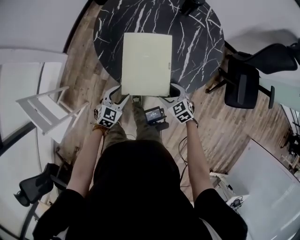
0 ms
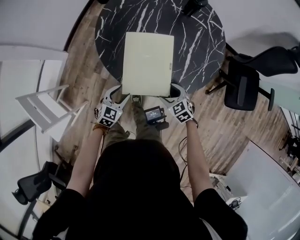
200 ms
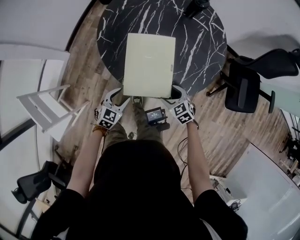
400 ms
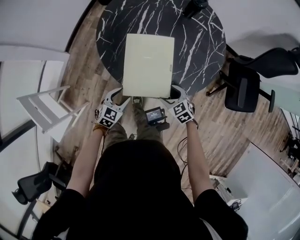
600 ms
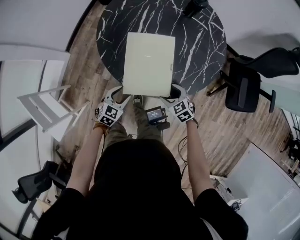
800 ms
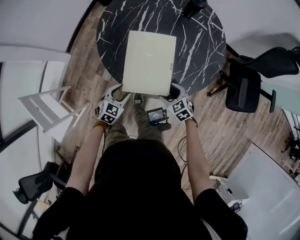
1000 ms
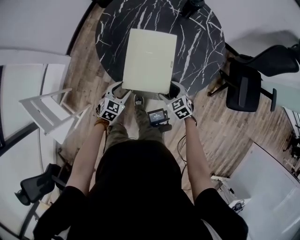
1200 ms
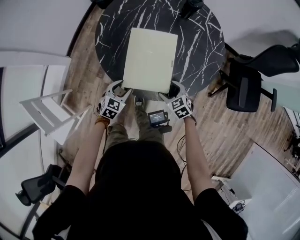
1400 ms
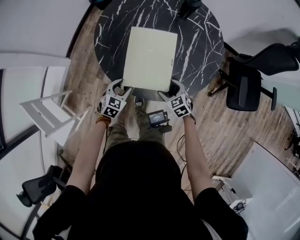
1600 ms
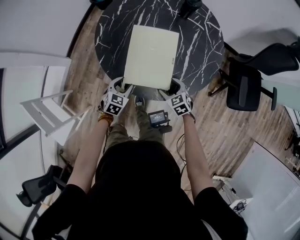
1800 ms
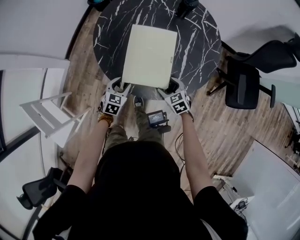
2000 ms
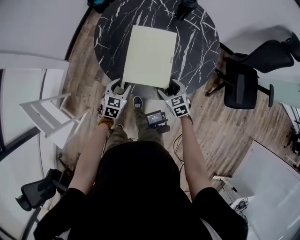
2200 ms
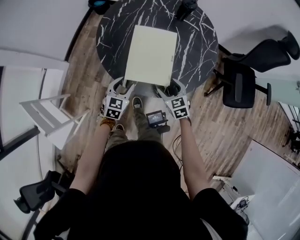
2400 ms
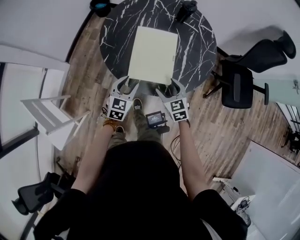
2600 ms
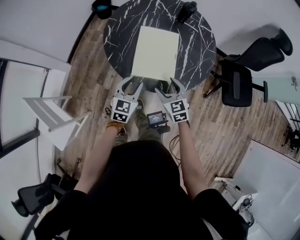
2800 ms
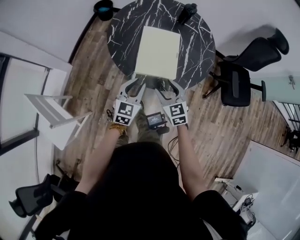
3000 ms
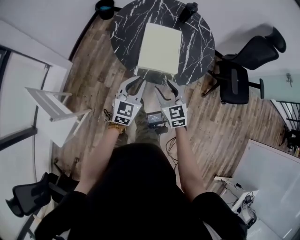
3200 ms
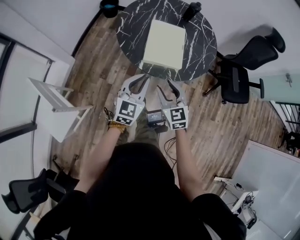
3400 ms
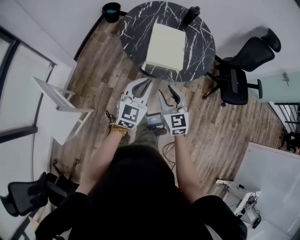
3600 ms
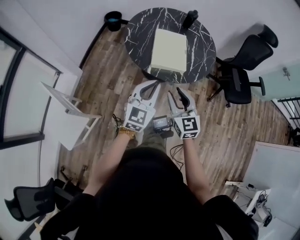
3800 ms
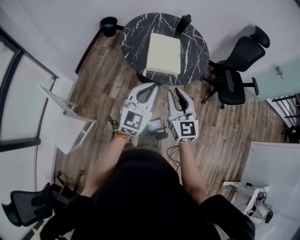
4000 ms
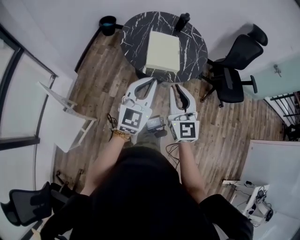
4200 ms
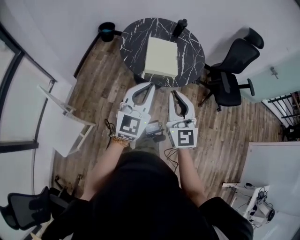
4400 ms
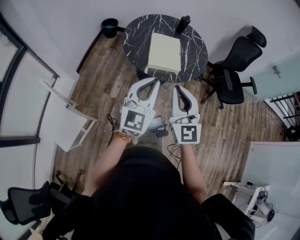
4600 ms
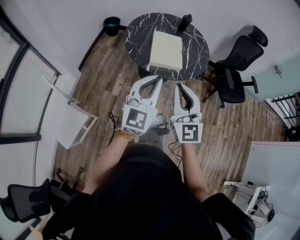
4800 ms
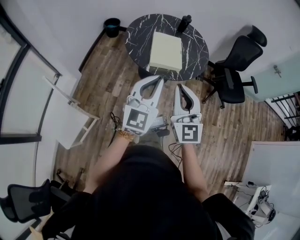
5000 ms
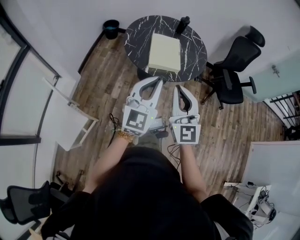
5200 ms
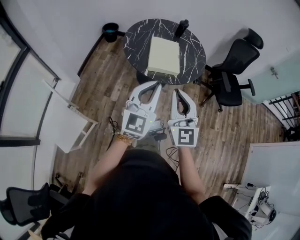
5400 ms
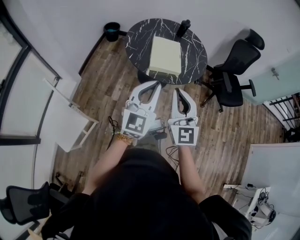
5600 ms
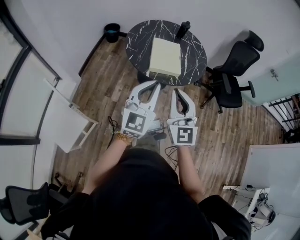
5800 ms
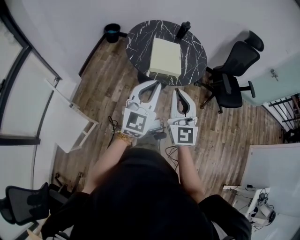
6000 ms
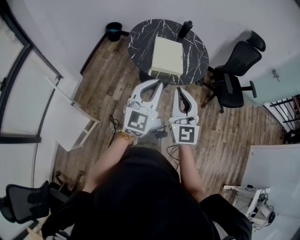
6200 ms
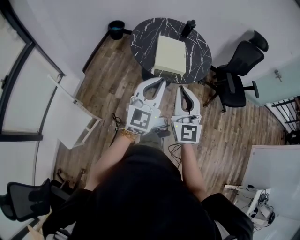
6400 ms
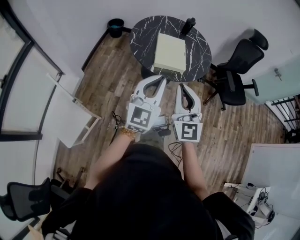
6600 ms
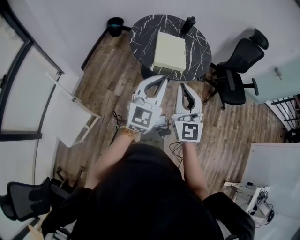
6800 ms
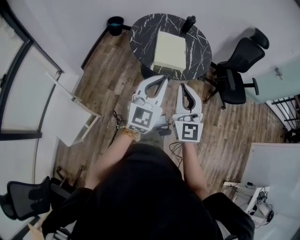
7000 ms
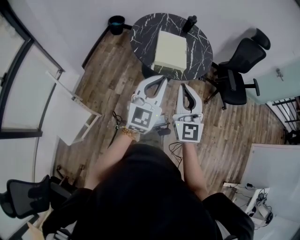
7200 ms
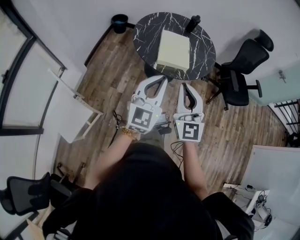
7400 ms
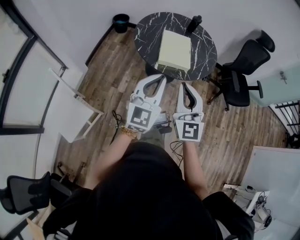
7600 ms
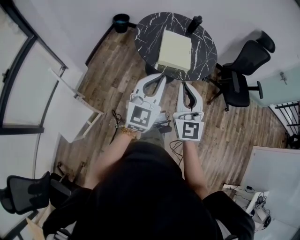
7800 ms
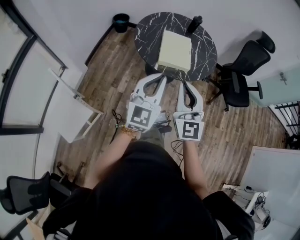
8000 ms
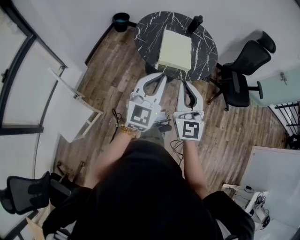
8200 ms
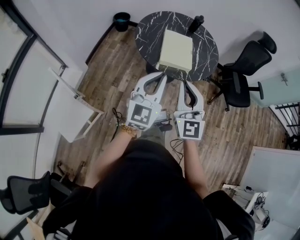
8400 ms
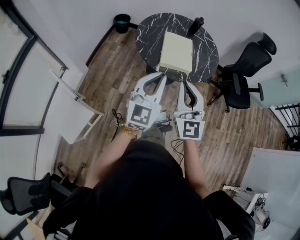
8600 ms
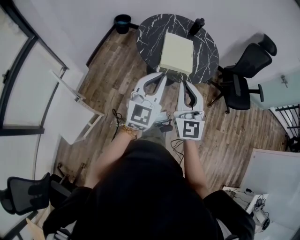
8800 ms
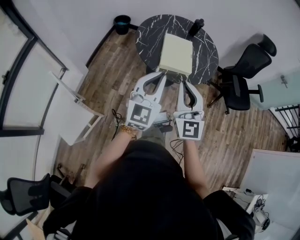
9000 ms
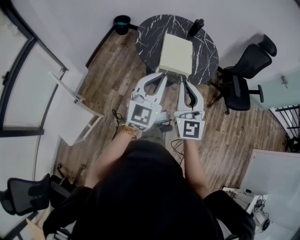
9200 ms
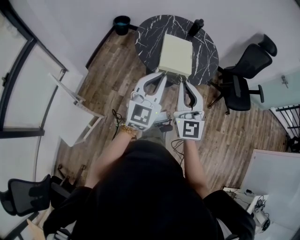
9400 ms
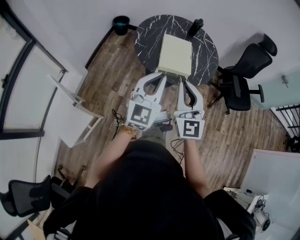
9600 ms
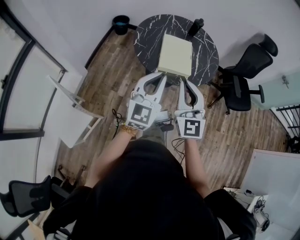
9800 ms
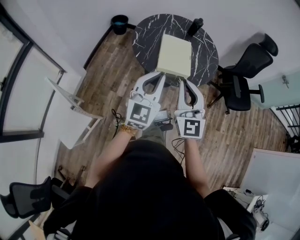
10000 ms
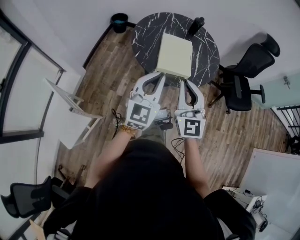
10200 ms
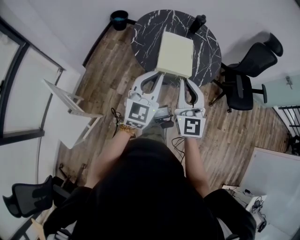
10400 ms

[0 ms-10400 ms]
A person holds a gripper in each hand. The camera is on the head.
0 ms to 1400 ms: The grippers stay close to where they were, moving slightly.
1400 ms to 3000 ms: The left gripper heads upward, covering some 20 cm, turns by roughly 30 degrees, and closes its fingers. Meanwhile the right gripper heads upward, to the left and backward, covering about 20 cm, and swivels roughly 30 degrees.
3000 ms to 4400 ms: The left gripper goes approximately 30 cm upward and backward, changes its angle by approximately 30 degrees, and closes up, while the right gripper moves backward and upward, roughly 35 cm, angles its fingers upward, by about 30 degrees, and closes its fingers.
4400 ms to 6000 ms: The grippers move only a little.
6000 ms to 7400 ms: Both grippers stay about where they are.
7400 ms to 9000 ms: There are only small adjustments of the grippers.
9000 ms to 10400 ms: The grippers both shift forward by approximately 10 cm.

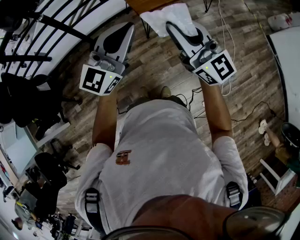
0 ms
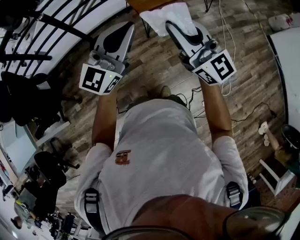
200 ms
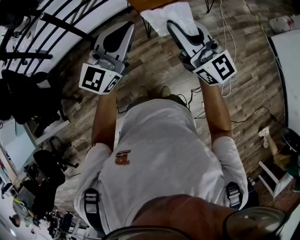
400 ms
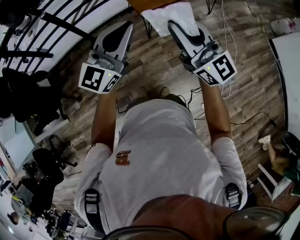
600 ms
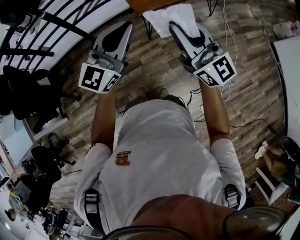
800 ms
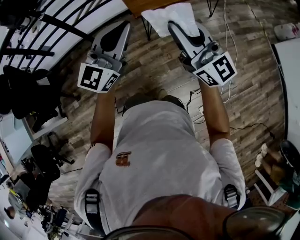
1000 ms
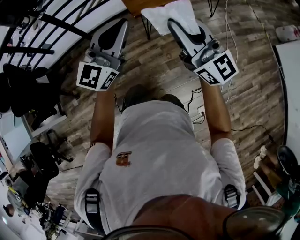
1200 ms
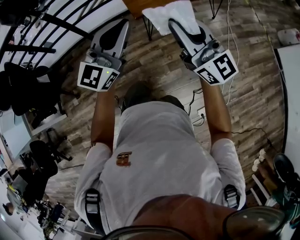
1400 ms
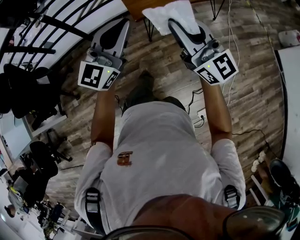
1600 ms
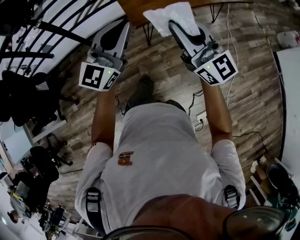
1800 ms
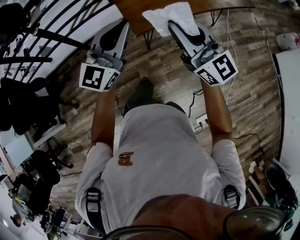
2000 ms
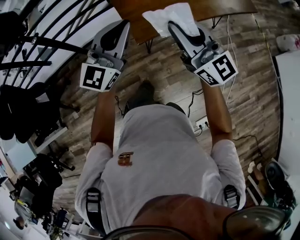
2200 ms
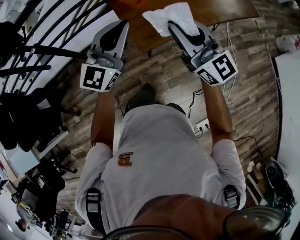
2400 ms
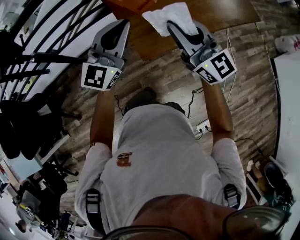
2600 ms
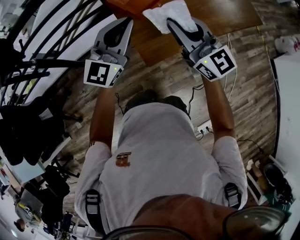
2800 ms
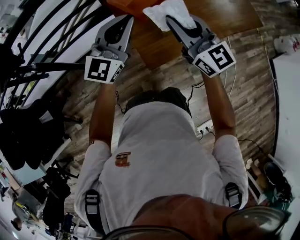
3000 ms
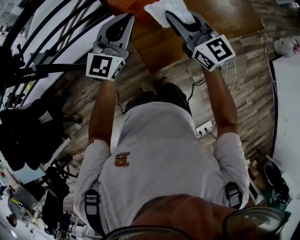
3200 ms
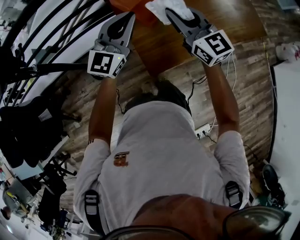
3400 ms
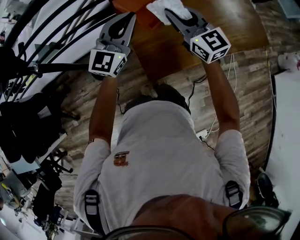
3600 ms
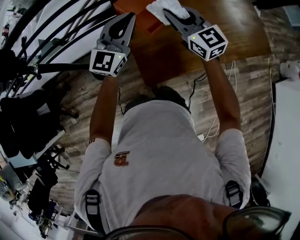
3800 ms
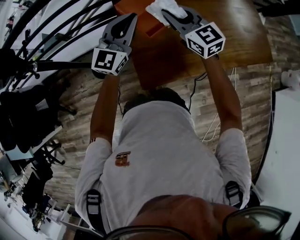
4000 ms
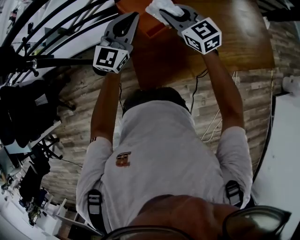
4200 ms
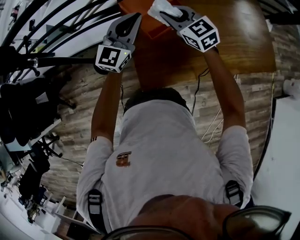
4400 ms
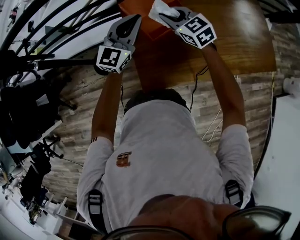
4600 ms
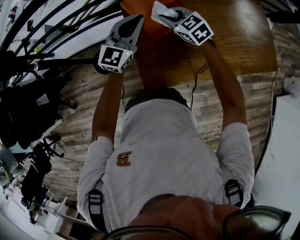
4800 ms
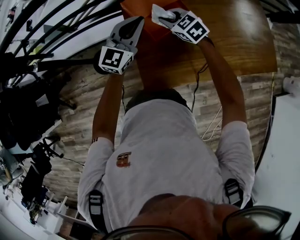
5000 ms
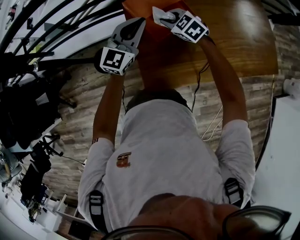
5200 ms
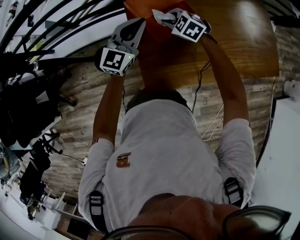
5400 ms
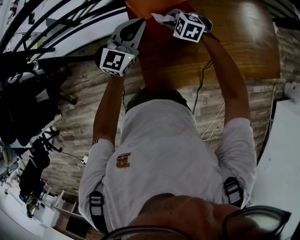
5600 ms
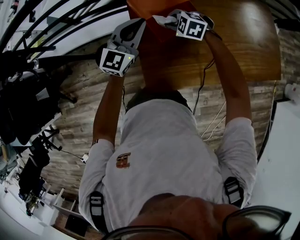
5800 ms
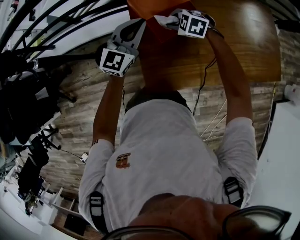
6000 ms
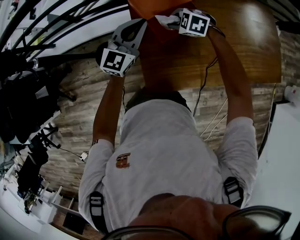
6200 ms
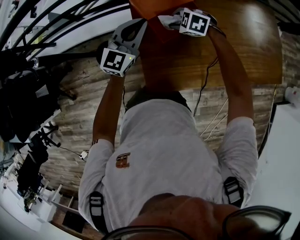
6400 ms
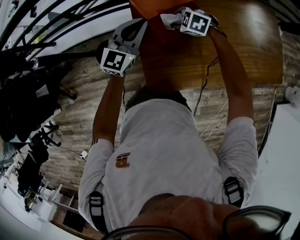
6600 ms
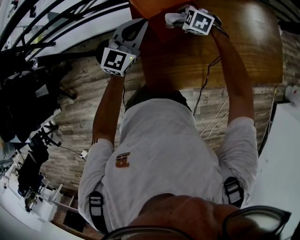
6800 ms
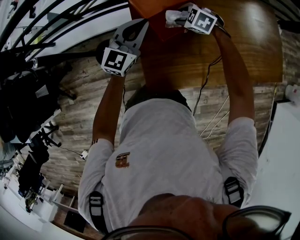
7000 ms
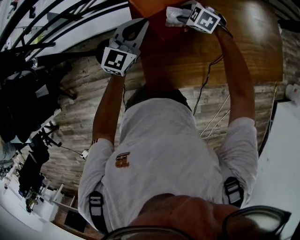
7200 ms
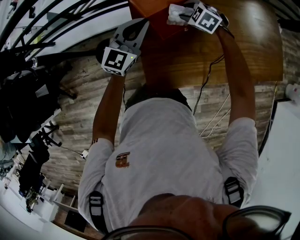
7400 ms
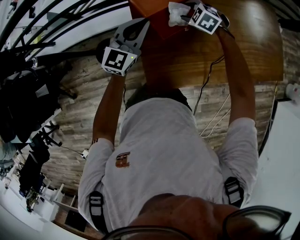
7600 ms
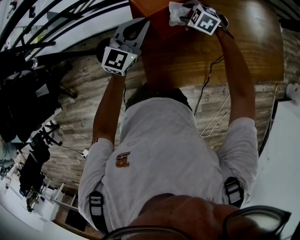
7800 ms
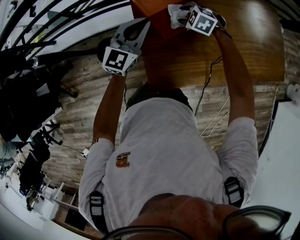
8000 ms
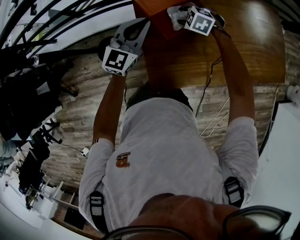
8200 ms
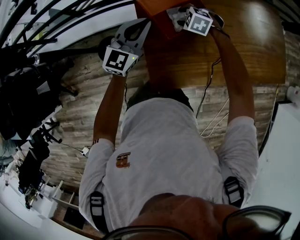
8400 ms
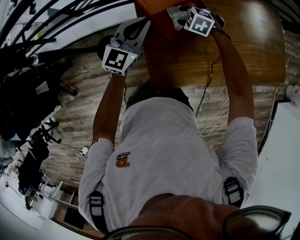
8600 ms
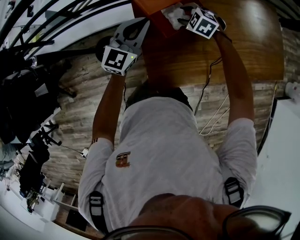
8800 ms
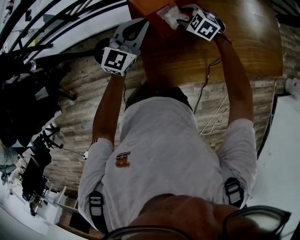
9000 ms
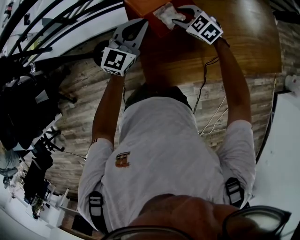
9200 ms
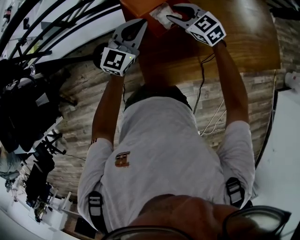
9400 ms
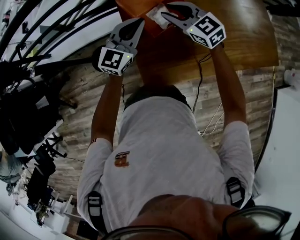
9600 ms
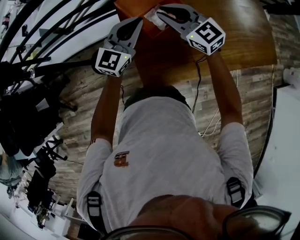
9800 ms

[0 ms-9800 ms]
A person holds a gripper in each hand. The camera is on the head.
0 ms to 1400 ms: The two grippers go roughly 10 cm to the right.
1400 ms to 2800 ms: Both grippers are carried forward, approximately 40 cm.
2800 ms to 4200 ms: Both grippers move forward, some 25 cm. The right gripper swivels about 30 degrees.
4200 ms to 5600 ms: The left gripper shifts some 10 cm downward and forward. Meanwhile the right gripper travels downward by roughly 15 cm, and tilts its fingers some 40 degrees downward.
5600 ms to 7000 ms: The right gripper shifts by some 5 cm, and opens.
7000 ms to 8400 ms: There are only small adjustments of the grippers.
8400 ms to 9800 ms: The left gripper shifts by approximately 5 cm, while the right gripper travels upward by roughly 20 cm, tips its fingers upward by about 50 degrees, and closes its fingers.

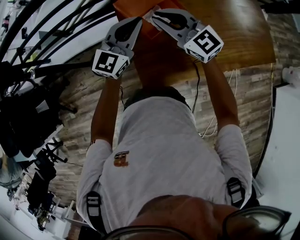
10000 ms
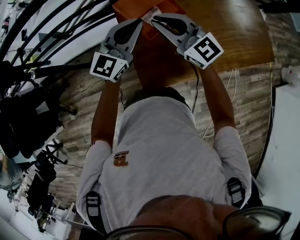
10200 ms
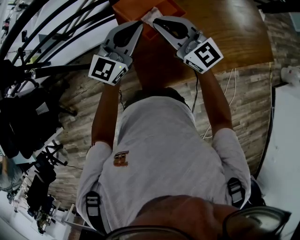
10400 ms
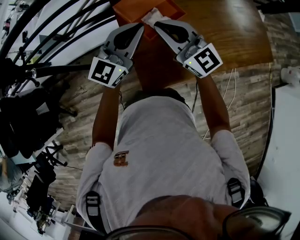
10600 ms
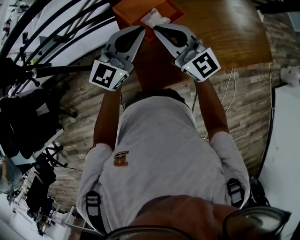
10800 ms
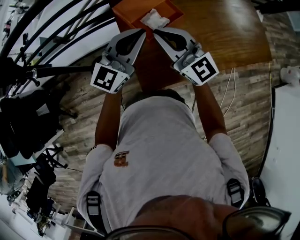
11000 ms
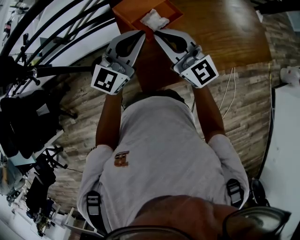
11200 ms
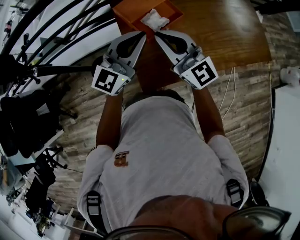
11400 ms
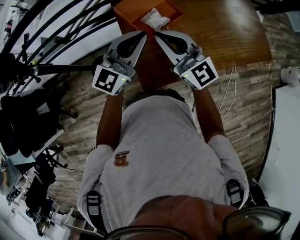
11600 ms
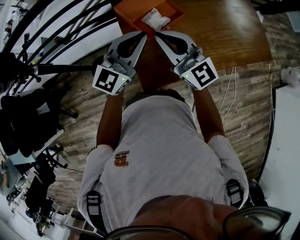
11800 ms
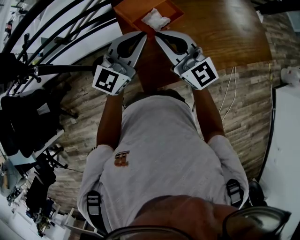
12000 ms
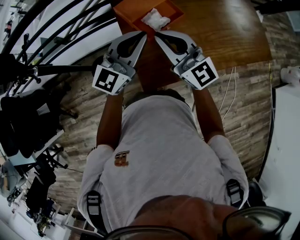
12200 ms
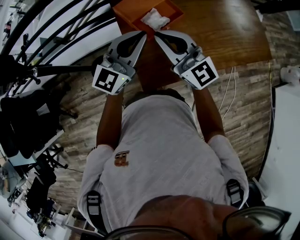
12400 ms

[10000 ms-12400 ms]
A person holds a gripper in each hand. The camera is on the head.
10000 ms to 11200 ms: The two grippers go some 10 cm backward and upward.
11200 ms to 12400 ms: There are only small adjustments of the grippers.

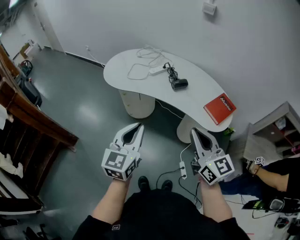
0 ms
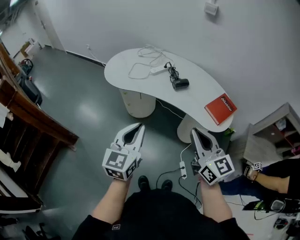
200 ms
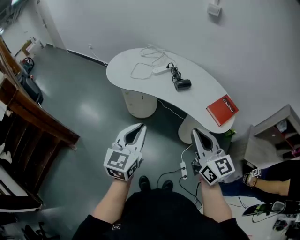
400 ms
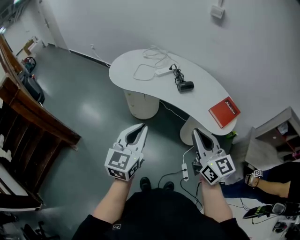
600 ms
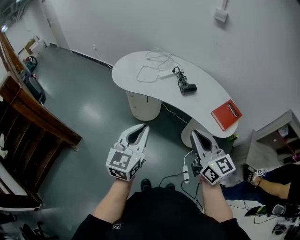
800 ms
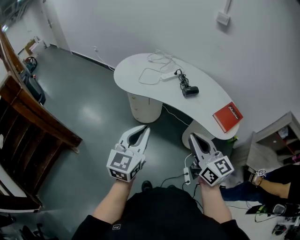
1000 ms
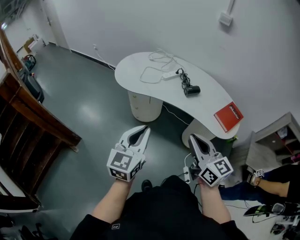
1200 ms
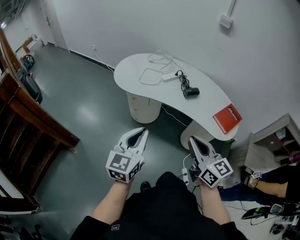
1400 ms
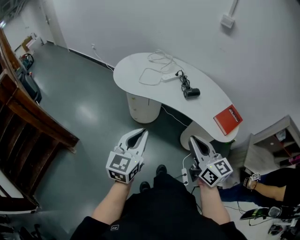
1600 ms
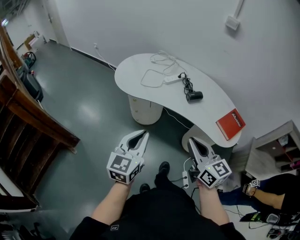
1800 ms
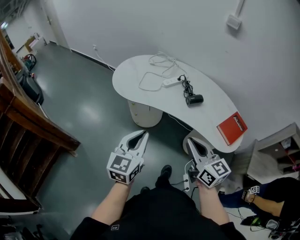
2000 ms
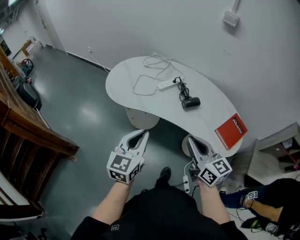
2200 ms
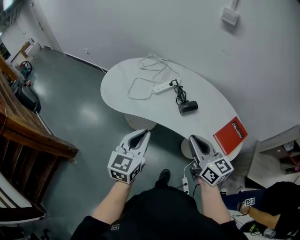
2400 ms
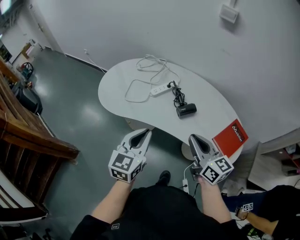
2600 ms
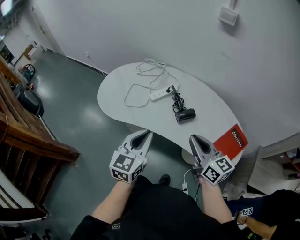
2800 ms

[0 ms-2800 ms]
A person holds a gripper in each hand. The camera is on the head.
0 ms to 1400 ms: The grippers both shift to the left by some 10 cm.
1400 ms to 2800 ms: The grippers both shift forward and to the right by some 30 cm.
